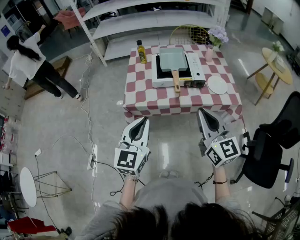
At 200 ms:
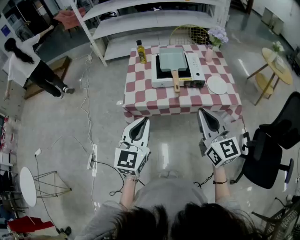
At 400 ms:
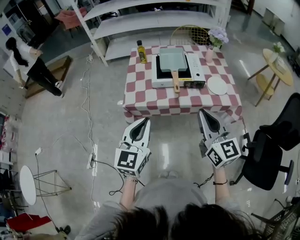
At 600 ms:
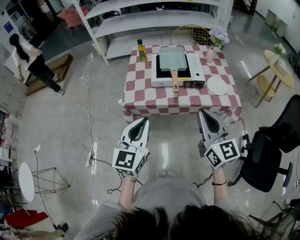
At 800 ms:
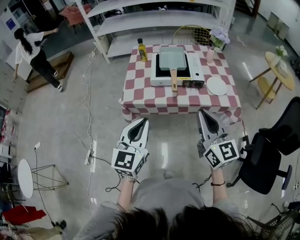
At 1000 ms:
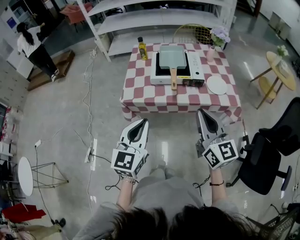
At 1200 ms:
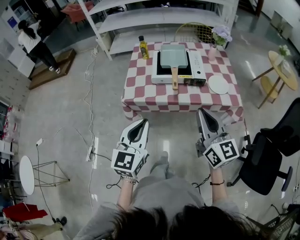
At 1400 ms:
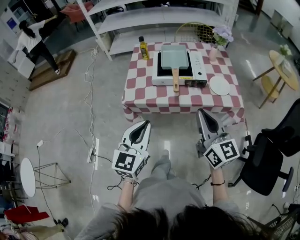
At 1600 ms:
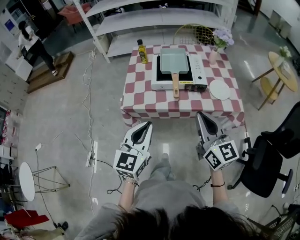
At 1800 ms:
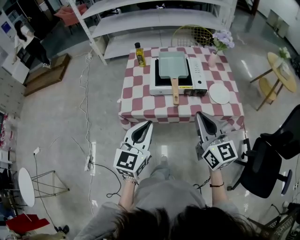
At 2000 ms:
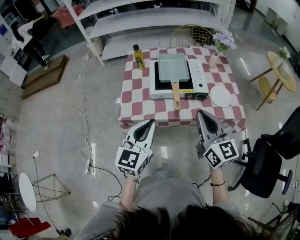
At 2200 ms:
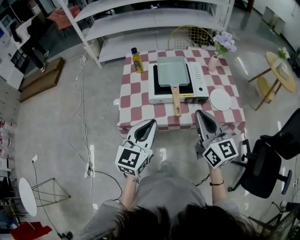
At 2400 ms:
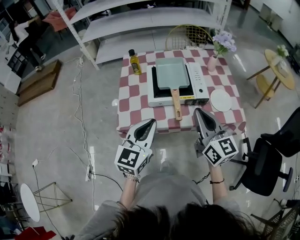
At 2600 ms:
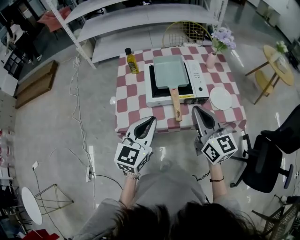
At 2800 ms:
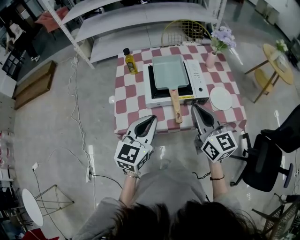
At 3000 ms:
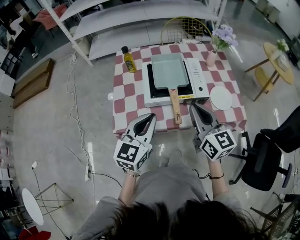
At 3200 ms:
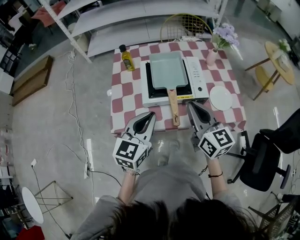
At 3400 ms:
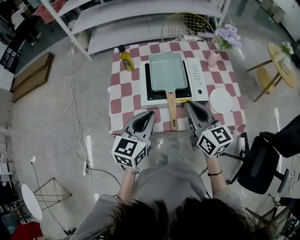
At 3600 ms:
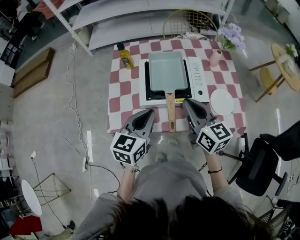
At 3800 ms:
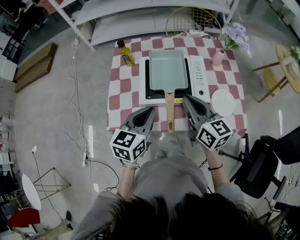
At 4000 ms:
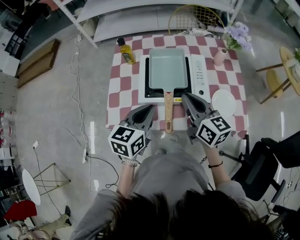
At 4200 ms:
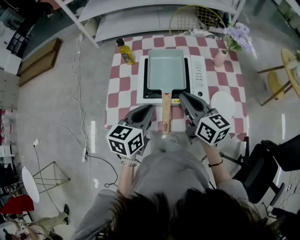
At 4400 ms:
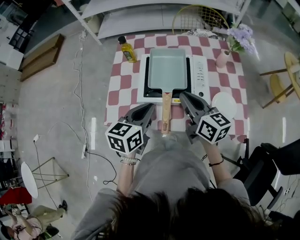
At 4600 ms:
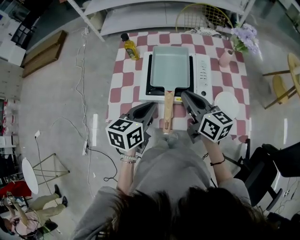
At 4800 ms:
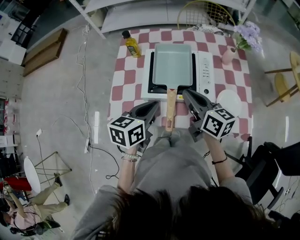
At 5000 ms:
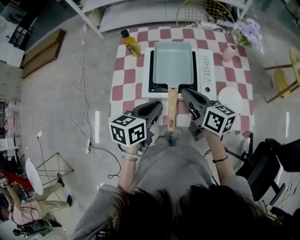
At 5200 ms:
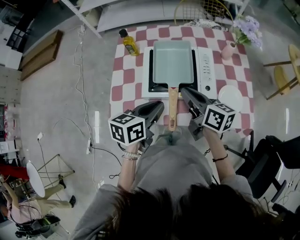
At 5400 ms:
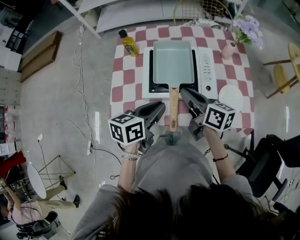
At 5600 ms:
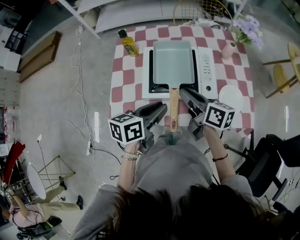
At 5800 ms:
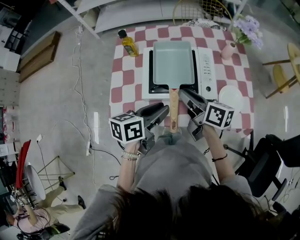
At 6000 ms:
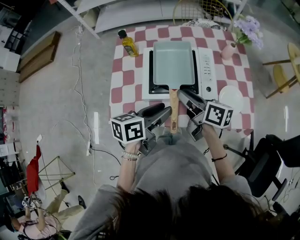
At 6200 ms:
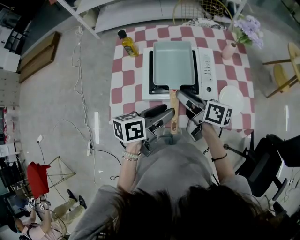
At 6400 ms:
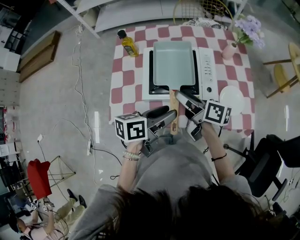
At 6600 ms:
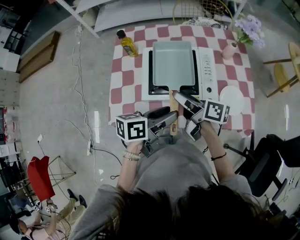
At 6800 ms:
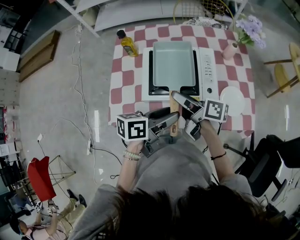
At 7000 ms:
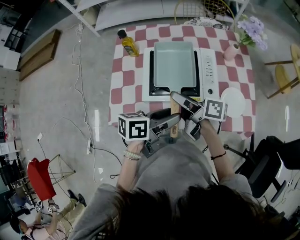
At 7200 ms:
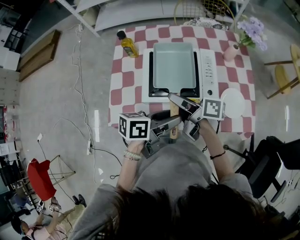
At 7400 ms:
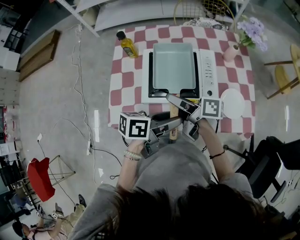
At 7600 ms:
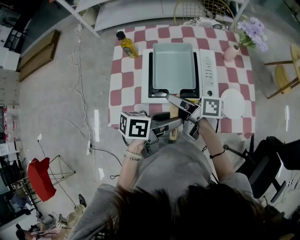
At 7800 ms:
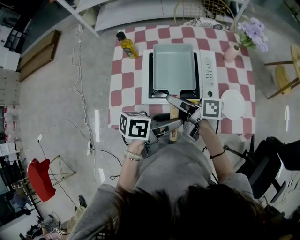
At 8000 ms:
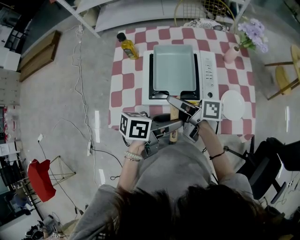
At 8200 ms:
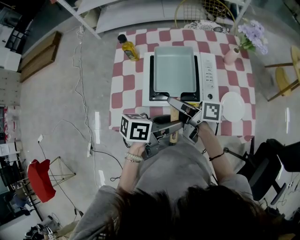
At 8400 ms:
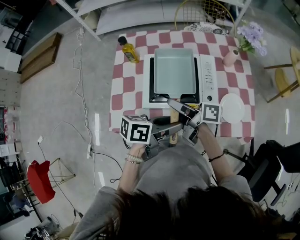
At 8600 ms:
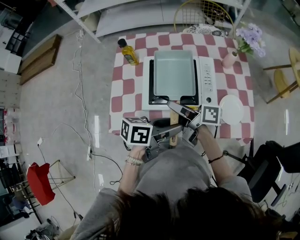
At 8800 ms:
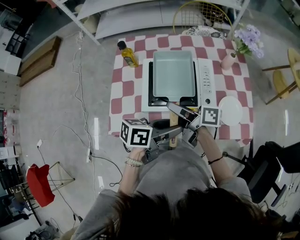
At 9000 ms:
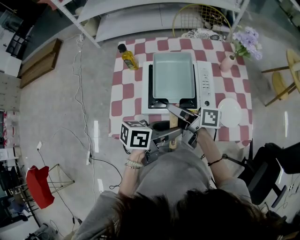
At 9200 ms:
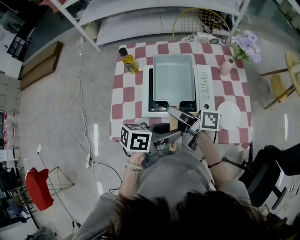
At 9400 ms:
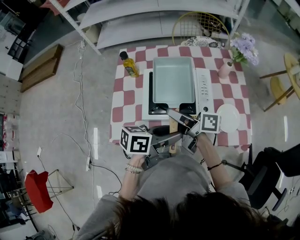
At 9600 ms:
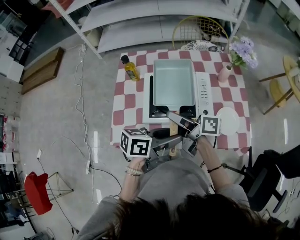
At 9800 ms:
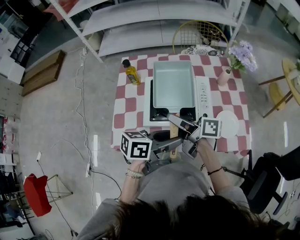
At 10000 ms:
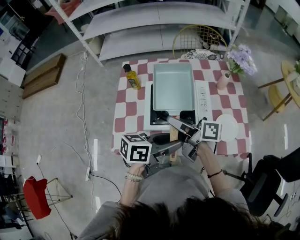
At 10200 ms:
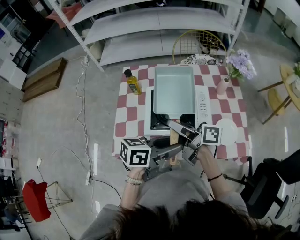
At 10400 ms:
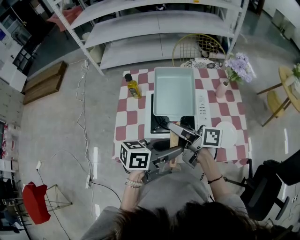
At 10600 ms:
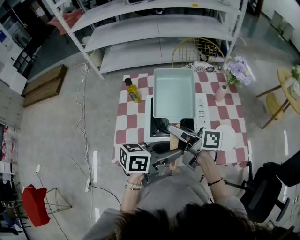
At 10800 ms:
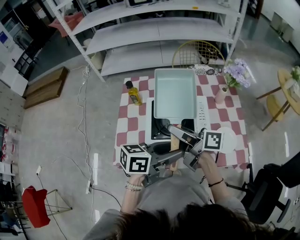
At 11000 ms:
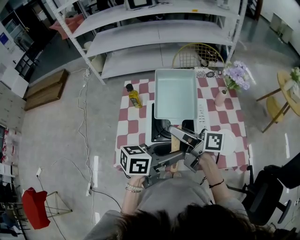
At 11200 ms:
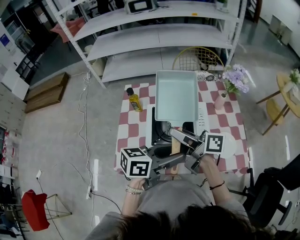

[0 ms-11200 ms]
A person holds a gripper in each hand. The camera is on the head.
0 ms to 1600 ms: The grippers stay close to where they were, moving slightly.
1600 ms to 3200 ms: The grippers both shift forward by about 20 cm.
3200 ms to 4800 ms: Both grippers travel together forward and downward, approximately 10 cm. The right gripper swivels some 30 degrees. The left gripper changes its angle by about 30 degrees.
4800 ms to 6400 ms: The left gripper changes its angle by about 30 degrees, and opens its fingers. Meanwhile the right gripper changes place by some 5 cm, rotates roughly 30 degrees, and opens its fingers.
6400 ms to 9600 ms: The grippers make only small movements.
9600 ms to 11200 ms: The grippers both shift upward by about 10 cm.

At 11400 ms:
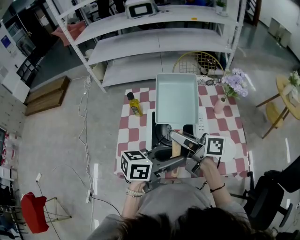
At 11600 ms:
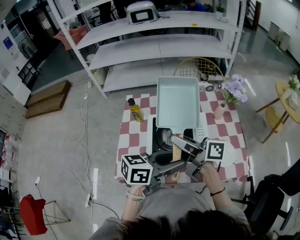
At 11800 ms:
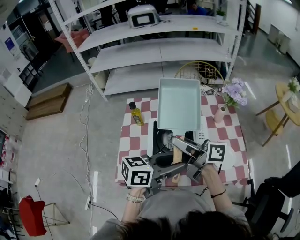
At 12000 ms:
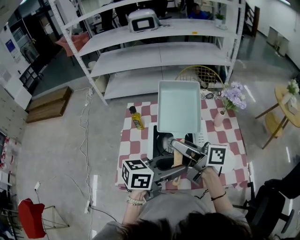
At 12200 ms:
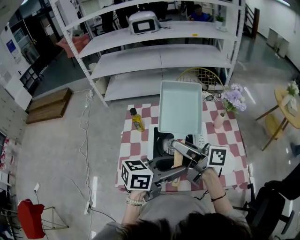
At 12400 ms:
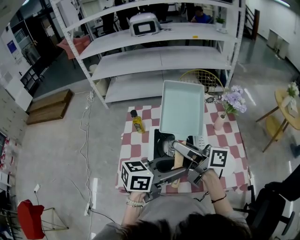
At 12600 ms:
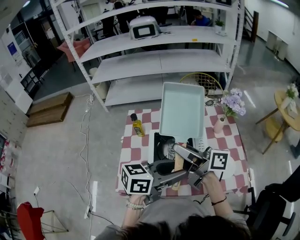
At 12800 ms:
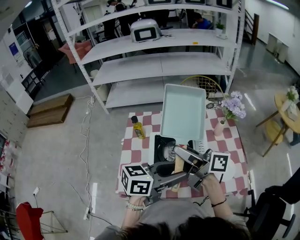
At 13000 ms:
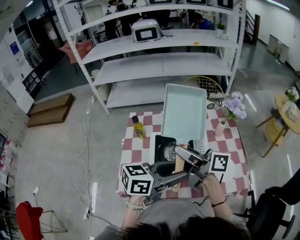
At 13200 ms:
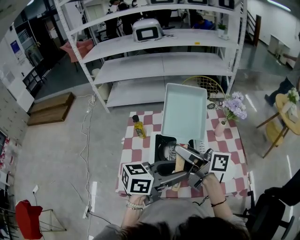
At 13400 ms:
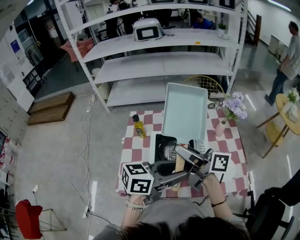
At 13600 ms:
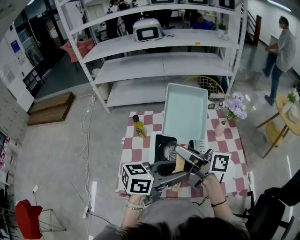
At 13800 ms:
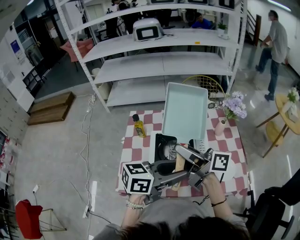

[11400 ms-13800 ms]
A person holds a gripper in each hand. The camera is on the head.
11400 ms to 12600 ms: The grippers make only small movements.
12600 ms to 13800 ms: Both grippers stay put.

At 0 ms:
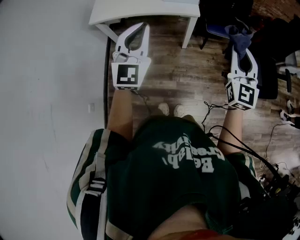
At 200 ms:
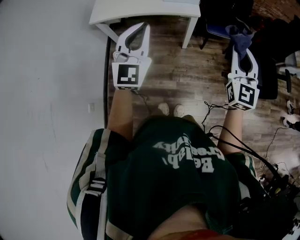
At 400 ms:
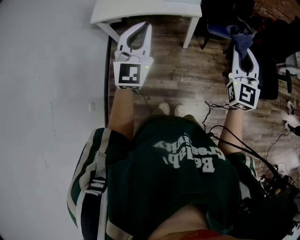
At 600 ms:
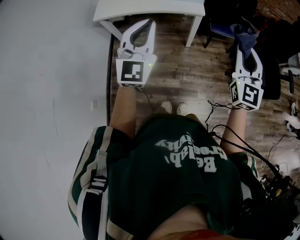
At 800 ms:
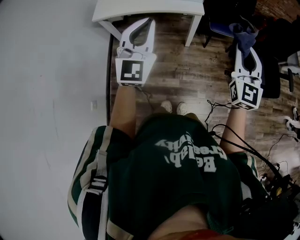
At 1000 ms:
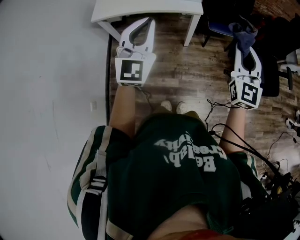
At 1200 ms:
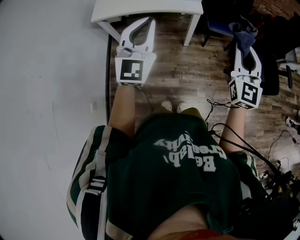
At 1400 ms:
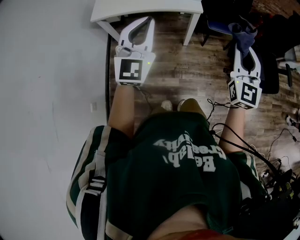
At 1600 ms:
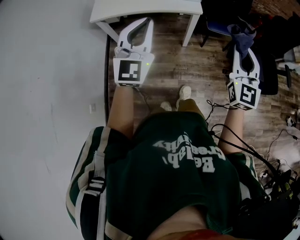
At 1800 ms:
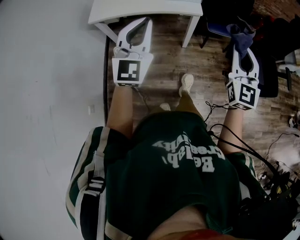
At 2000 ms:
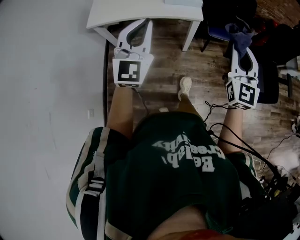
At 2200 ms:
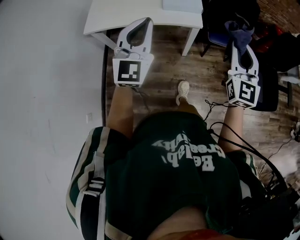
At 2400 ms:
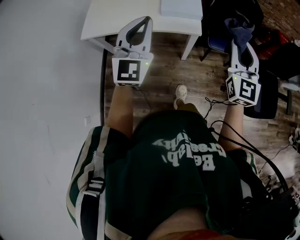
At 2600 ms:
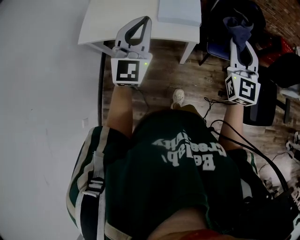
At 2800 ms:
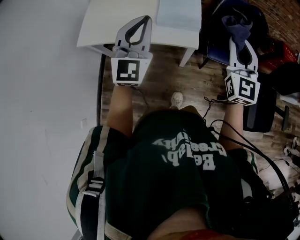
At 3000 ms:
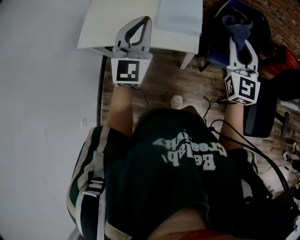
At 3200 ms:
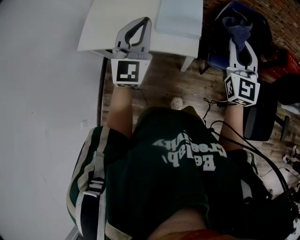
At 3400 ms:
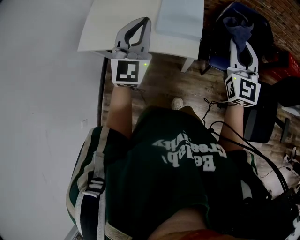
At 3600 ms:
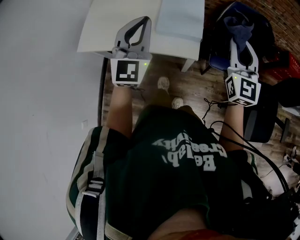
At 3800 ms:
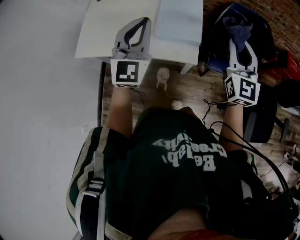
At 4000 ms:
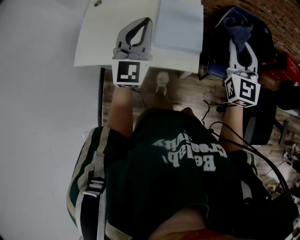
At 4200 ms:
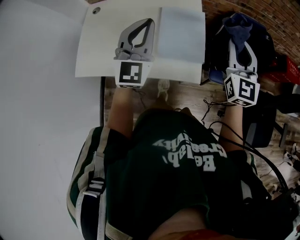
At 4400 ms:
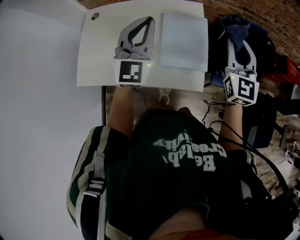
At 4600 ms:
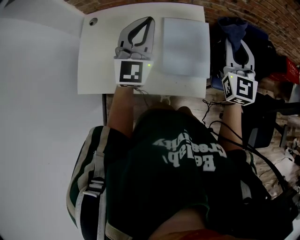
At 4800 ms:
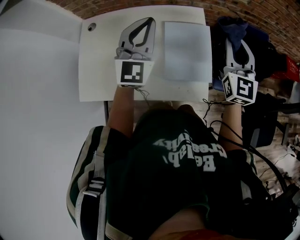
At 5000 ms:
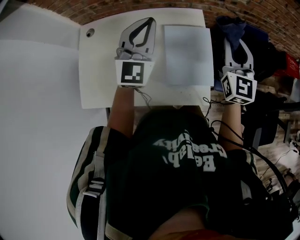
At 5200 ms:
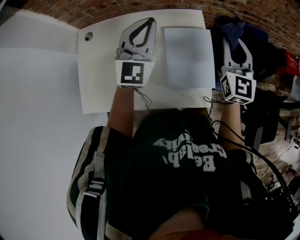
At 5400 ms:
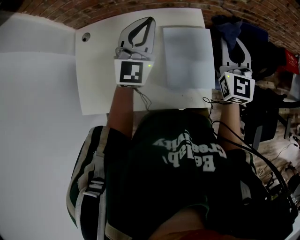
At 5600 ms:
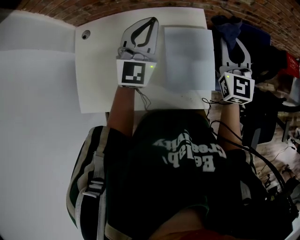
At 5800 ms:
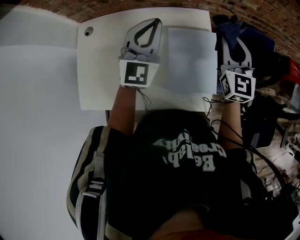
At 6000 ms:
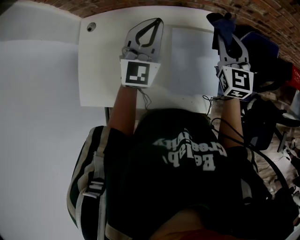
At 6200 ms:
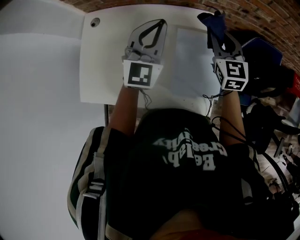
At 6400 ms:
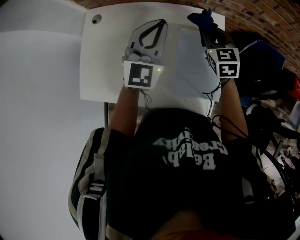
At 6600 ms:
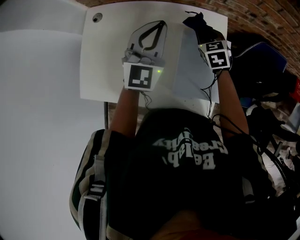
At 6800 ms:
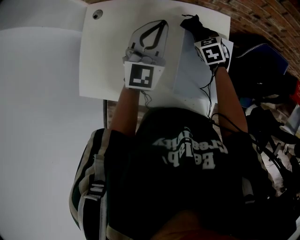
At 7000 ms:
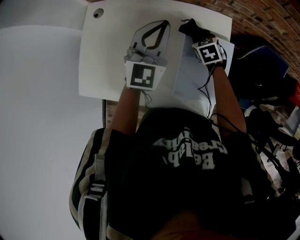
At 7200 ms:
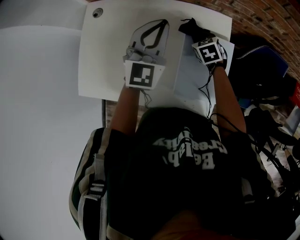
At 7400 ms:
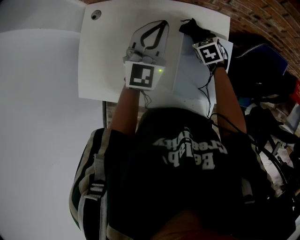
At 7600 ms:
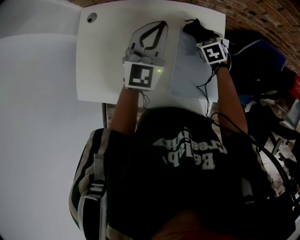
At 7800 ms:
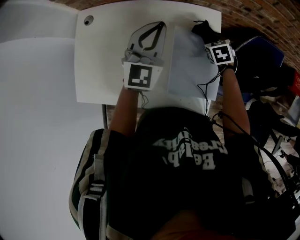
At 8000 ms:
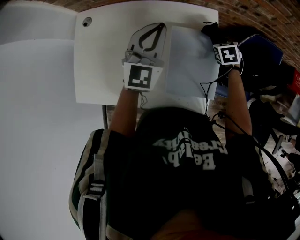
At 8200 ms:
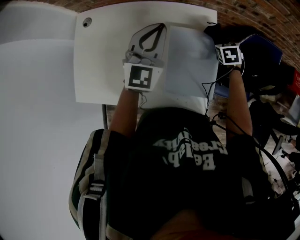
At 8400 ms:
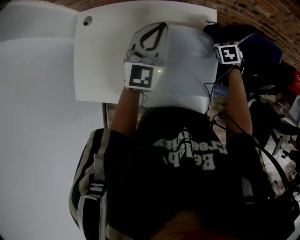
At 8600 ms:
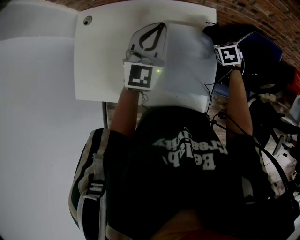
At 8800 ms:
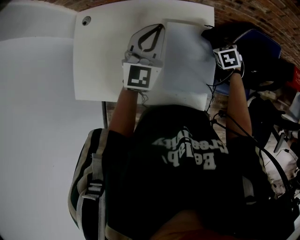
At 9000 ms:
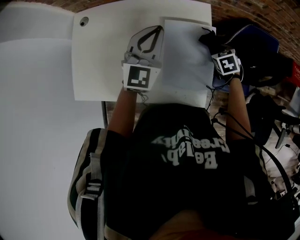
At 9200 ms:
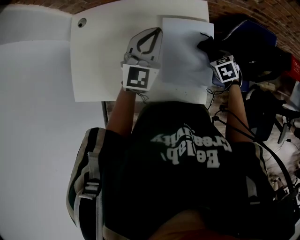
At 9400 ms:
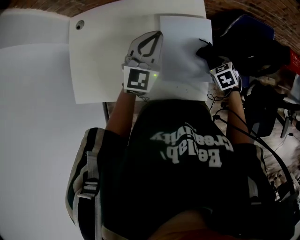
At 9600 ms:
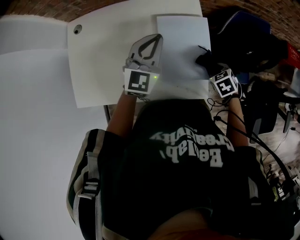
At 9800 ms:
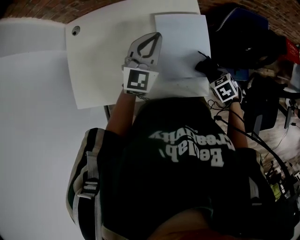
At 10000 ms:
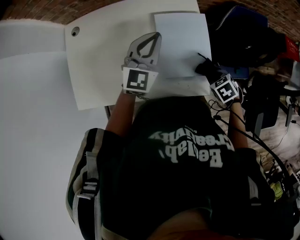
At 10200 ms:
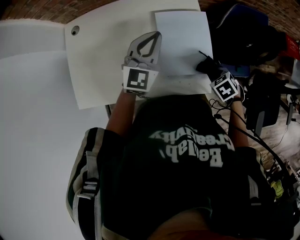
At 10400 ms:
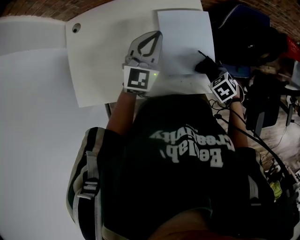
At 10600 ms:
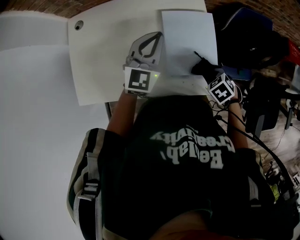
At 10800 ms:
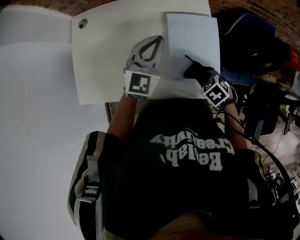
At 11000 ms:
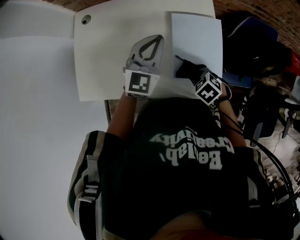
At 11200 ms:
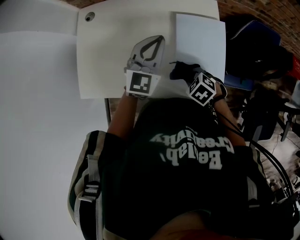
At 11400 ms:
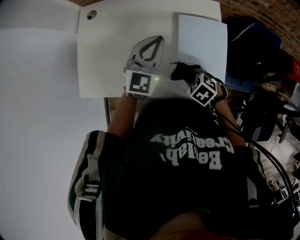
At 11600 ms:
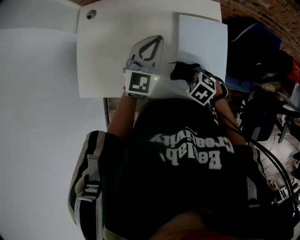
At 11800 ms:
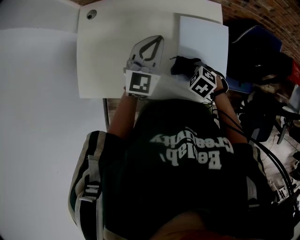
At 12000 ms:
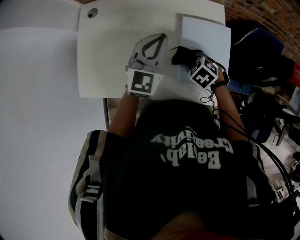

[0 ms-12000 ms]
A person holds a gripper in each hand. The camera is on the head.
0 ms to 1600 ms: The grippers stay close to where they were, moving slightly.
1600 ms to 3000 ms: Both grippers travel together forward, some 35 cm.
3000 ms to 4400 ms: Both grippers move forward, some 20 cm.
4400 ms to 6000 ms: The left gripper is displaced forward and to the left by roughly 15 cm, while the right gripper travels forward, to the left and downward by about 20 cm.
6000 ms to 7600 ms: The right gripper heads downward, covering roughly 25 cm, and tilts its fingers approximately 50 degrees downward.
7600 ms to 9000 ms: The left gripper goes roughly 5 cm to the right. The right gripper heads to the right and backward, covering some 15 cm.
9000 ms to 10400 ms: The left gripper shifts by about 5 cm; the right gripper ends up some 20 cm from where it was.
10400 ms to 12000 ms: The left gripper changes place by approximately 10 cm, while the right gripper shifts by about 20 cm, and changes its angle by some 20 degrees.
